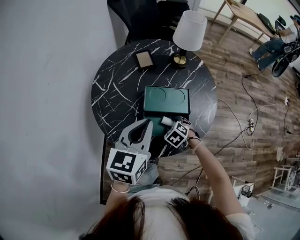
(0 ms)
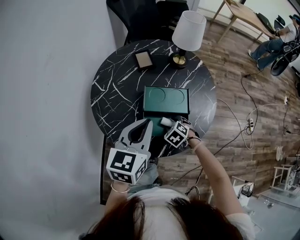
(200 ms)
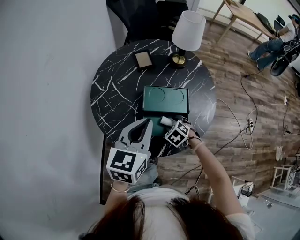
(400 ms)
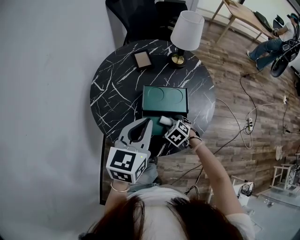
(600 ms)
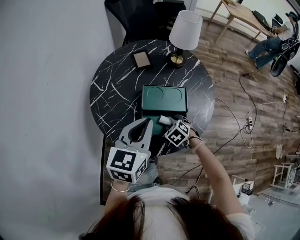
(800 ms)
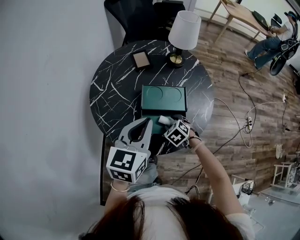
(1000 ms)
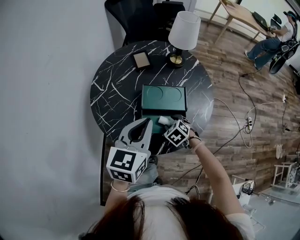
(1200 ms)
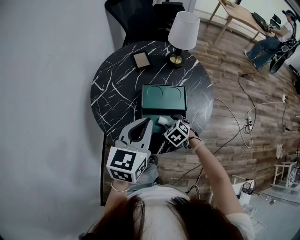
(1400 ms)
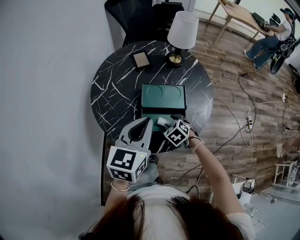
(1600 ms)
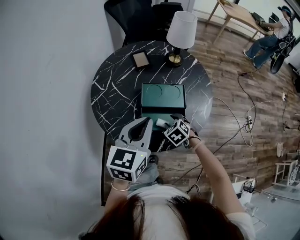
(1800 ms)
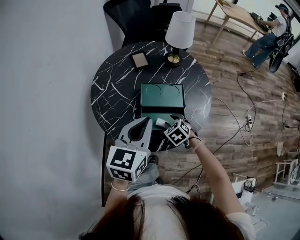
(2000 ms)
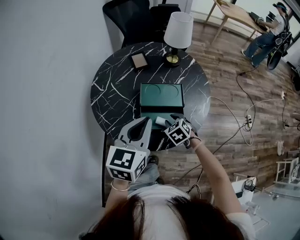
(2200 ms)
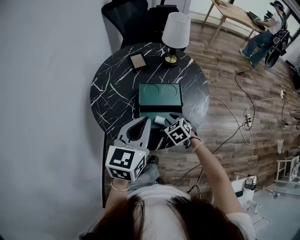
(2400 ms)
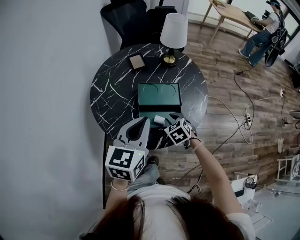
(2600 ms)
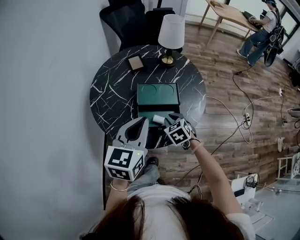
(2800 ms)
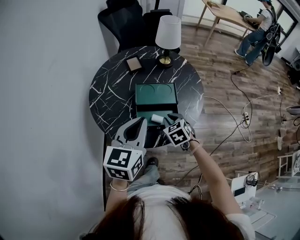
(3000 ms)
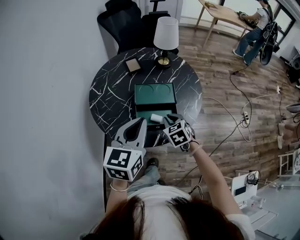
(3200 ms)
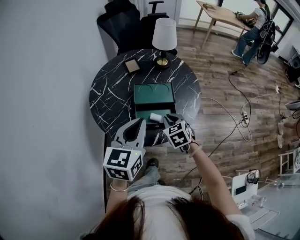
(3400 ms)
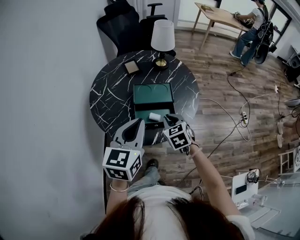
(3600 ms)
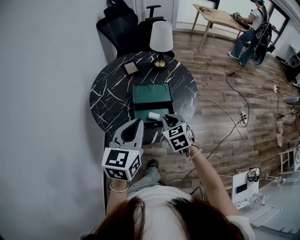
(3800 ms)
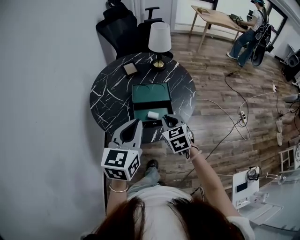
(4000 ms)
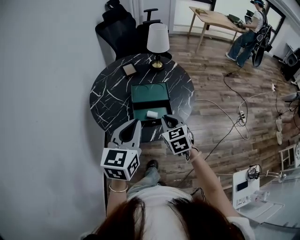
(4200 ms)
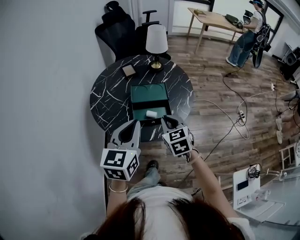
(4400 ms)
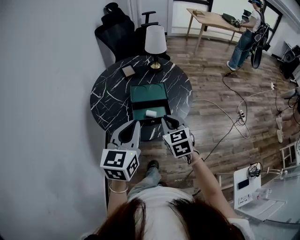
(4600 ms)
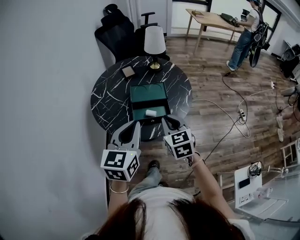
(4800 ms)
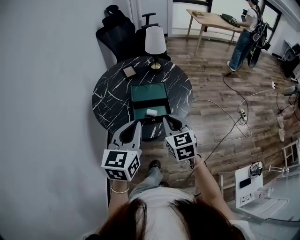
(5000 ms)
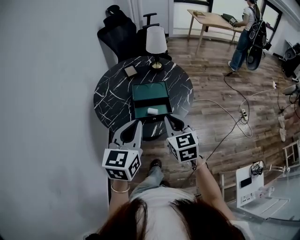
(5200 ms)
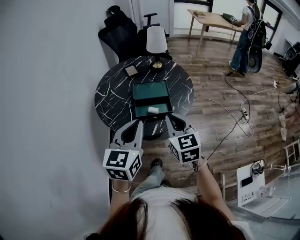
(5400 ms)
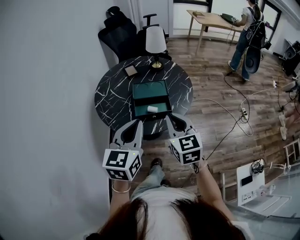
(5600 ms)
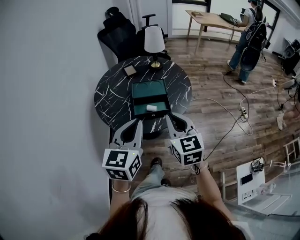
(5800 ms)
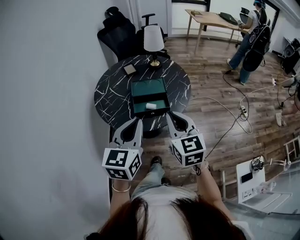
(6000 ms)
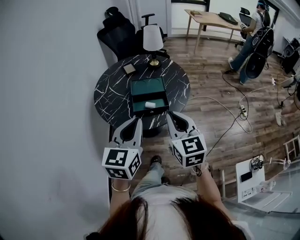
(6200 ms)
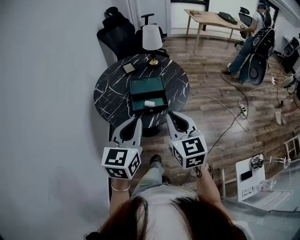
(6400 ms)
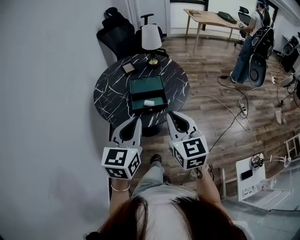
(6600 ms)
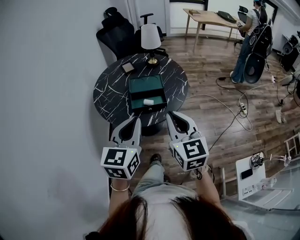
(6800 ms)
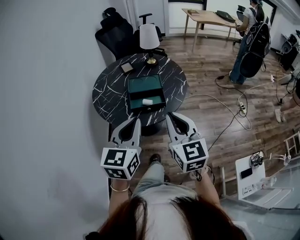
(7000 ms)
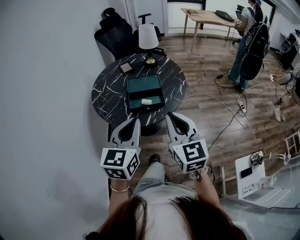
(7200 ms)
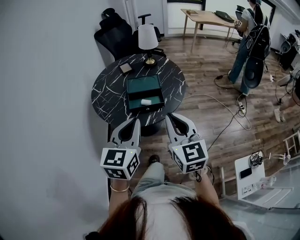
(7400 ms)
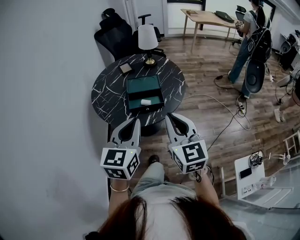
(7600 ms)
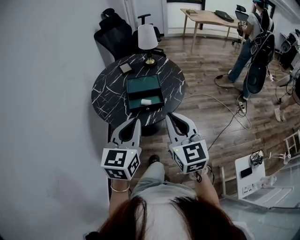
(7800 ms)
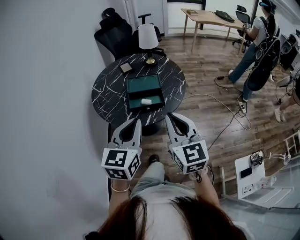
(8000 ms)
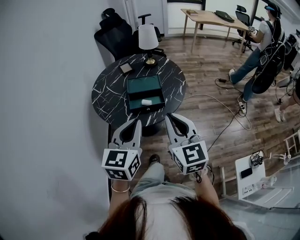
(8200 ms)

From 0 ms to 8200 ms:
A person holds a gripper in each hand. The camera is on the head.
From 0 ms to 1600 ms: The grippers stay close to where they were, moving slightly.
From 1600 ms to 3200 ms: The left gripper shifts approximately 5 cm backward; the right gripper shifts some 10 cm upward, rotates approximately 20 degrees, and closes.
From 3200 ms to 5000 ms: The right gripper travels upward and backward by roughly 20 cm, and rotates approximately 30 degrees; the left gripper moves backward, about 10 cm.
From 5000 ms to 6600 ms: The left gripper shifts some 10 cm backward, while the right gripper shifts some 15 cm backward and upward.
From 6600 ms to 8200 ms: The grippers make only small movements.

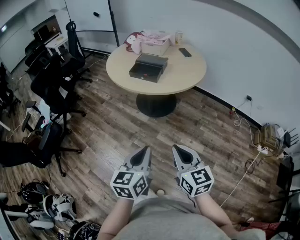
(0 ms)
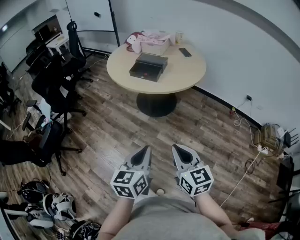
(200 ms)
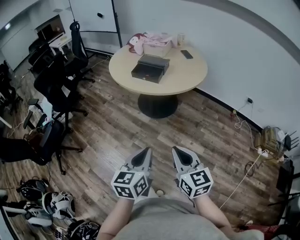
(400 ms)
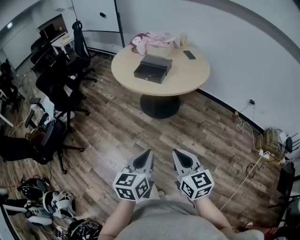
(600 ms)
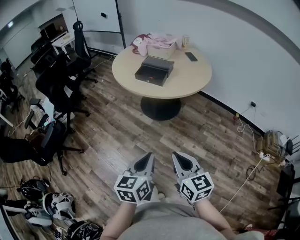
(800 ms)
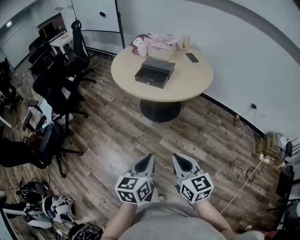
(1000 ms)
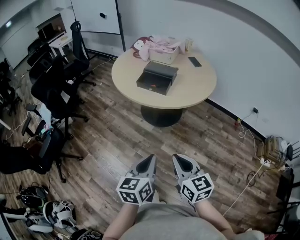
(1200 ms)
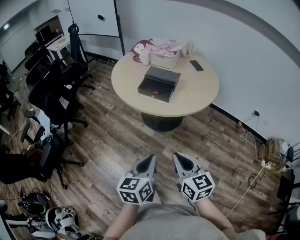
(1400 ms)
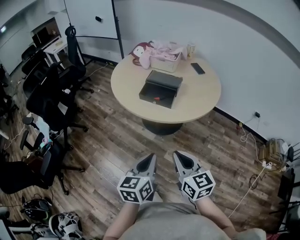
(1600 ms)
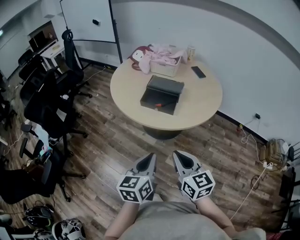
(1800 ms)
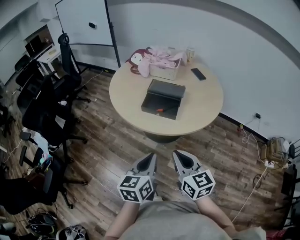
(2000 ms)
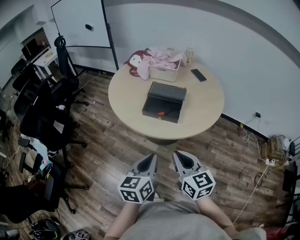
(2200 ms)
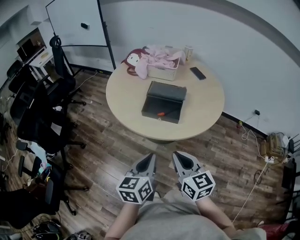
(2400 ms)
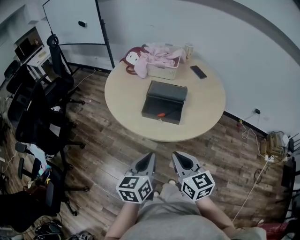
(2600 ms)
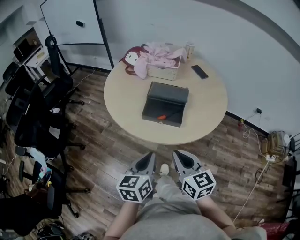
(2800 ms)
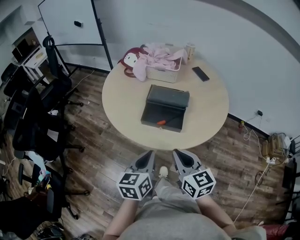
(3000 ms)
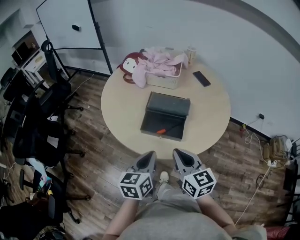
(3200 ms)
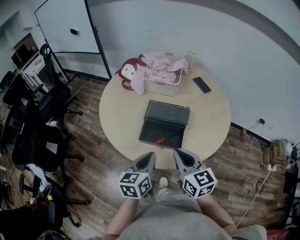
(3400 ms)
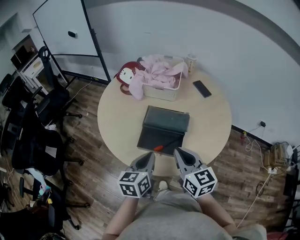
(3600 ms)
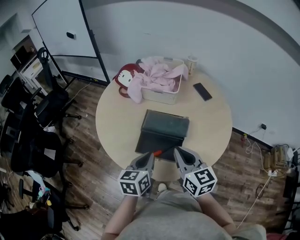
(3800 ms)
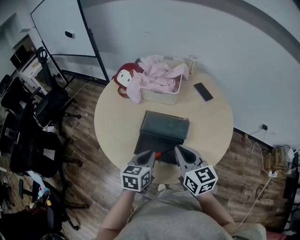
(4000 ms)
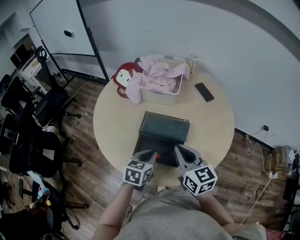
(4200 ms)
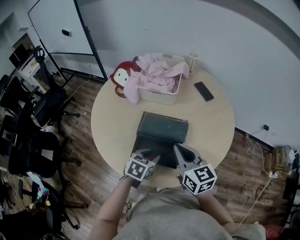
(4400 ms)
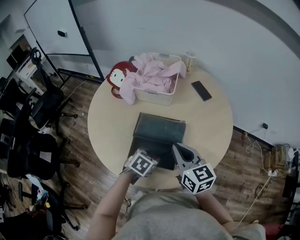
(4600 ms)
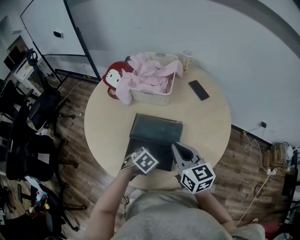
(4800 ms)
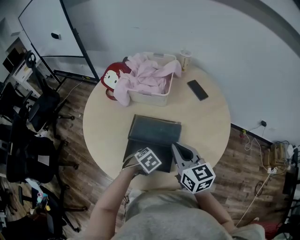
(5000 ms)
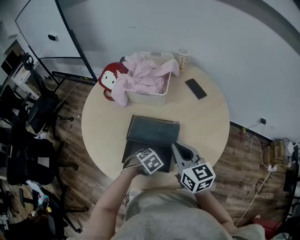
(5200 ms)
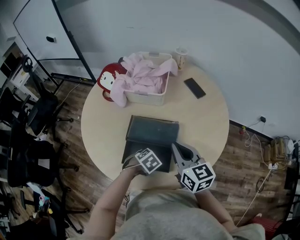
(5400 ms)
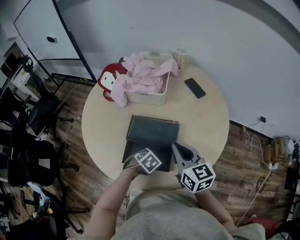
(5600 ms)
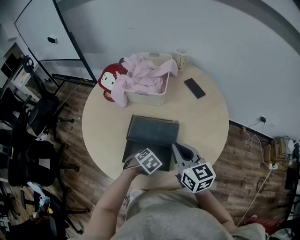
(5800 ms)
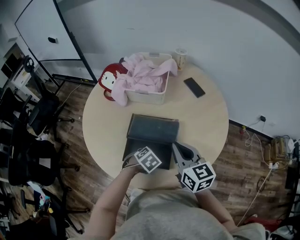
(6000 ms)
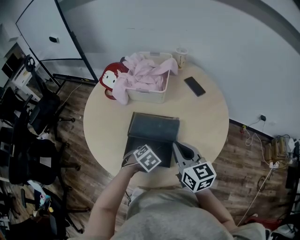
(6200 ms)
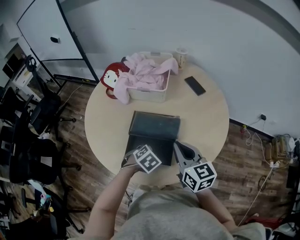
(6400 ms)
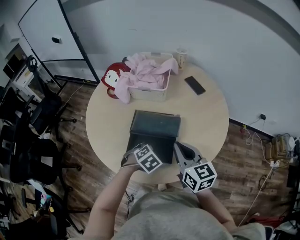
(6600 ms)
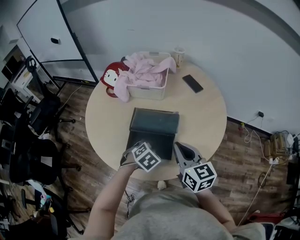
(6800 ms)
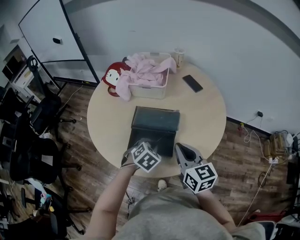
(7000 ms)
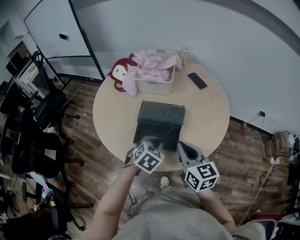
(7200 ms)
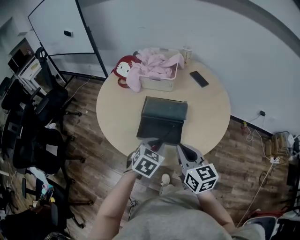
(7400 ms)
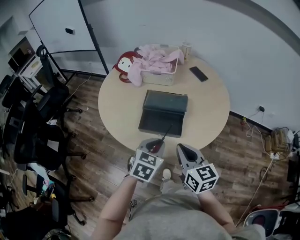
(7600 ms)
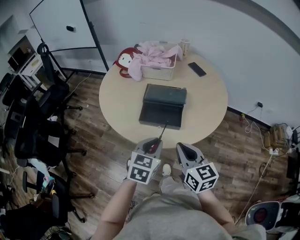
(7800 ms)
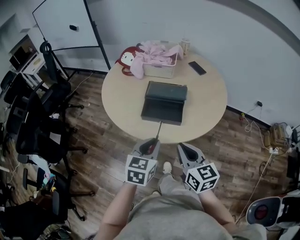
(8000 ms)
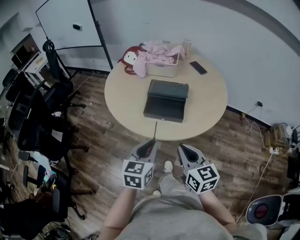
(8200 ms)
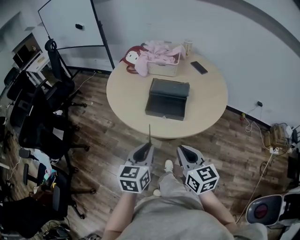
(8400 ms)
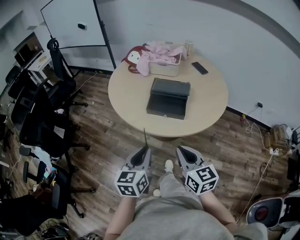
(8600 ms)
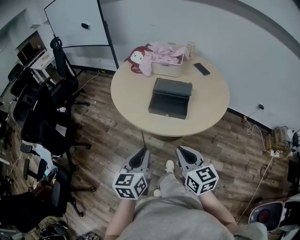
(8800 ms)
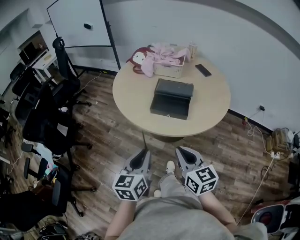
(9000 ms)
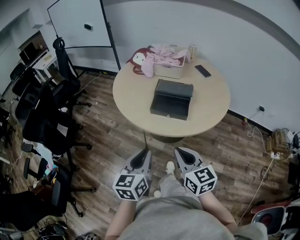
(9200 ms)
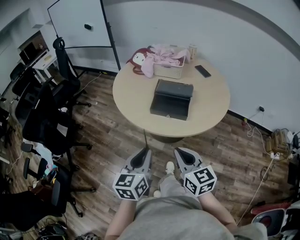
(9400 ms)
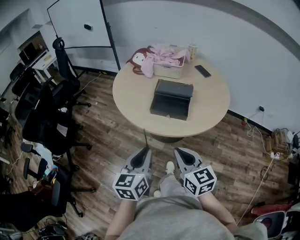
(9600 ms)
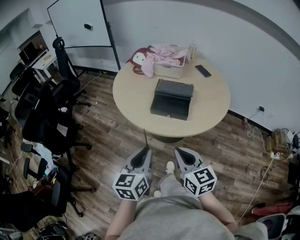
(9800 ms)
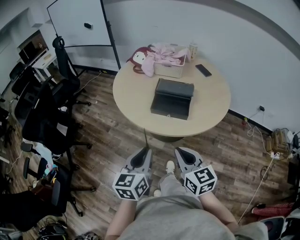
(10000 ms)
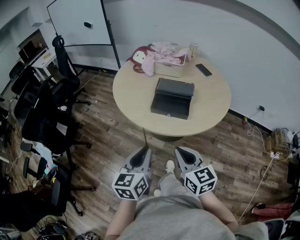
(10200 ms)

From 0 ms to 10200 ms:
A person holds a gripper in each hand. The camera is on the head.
From 0 ms to 1400 ms: The two grippers go approximately 15 cm forward.
From 1400 ms to 3000 ms: Both grippers move forward, about 30 cm.
From 3000 ms to 4400 ms: The left gripper goes some 25 cm forward and downward, swivels some 40 degrees, and opens up, while the right gripper is displaced forward by approximately 25 cm.
From 4400 ms to 5800 ms: The left gripper goes roughly 10 cm downward, and changes its angle by roughly 40 degrees.
From 5800 ms to 7200 ms: The left gripper is displaced upward and backward by approximately 15 cm, and swivels roughly 20 degrees; the right gripper moves backward, approximately 10 cm.
From 7200 ms to 8800 ms: The right gripper is displaced backward by approximately 25 cm. The left gripper goes some 30 cm backward and to the left, and angles its fingers upward, by approximately 30 degrees.
From 8800 ms to 10200 ms: The grippers stay close to where they were, moving slightly.

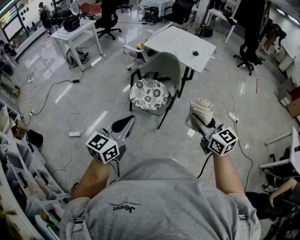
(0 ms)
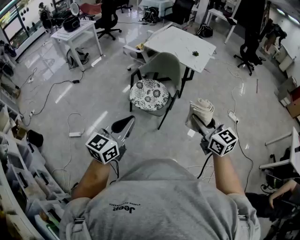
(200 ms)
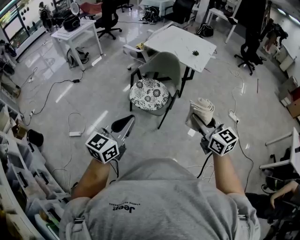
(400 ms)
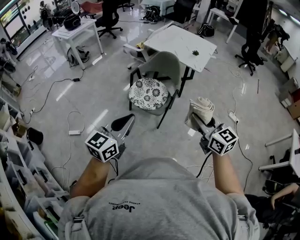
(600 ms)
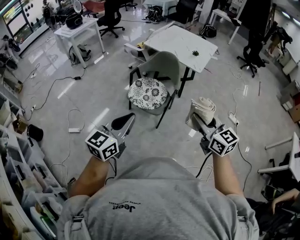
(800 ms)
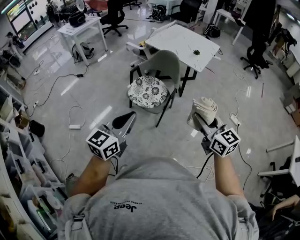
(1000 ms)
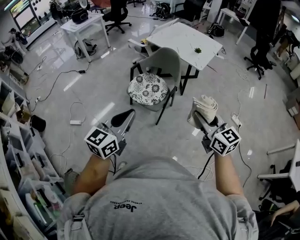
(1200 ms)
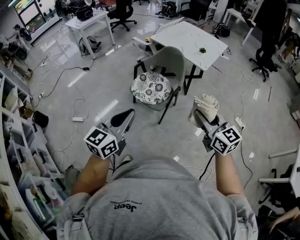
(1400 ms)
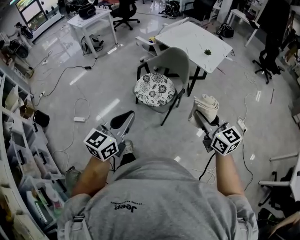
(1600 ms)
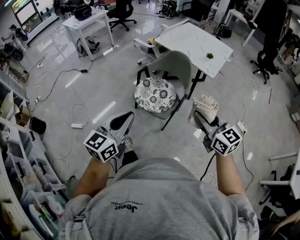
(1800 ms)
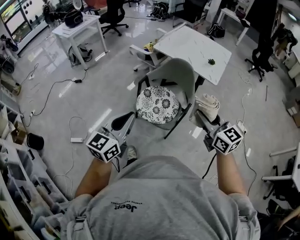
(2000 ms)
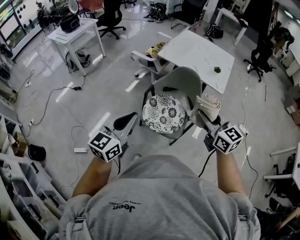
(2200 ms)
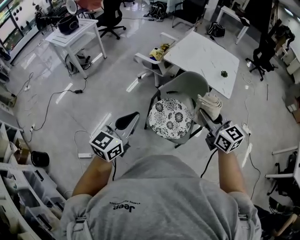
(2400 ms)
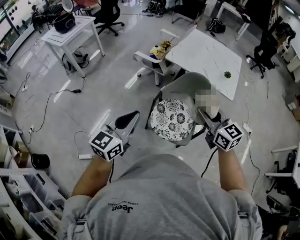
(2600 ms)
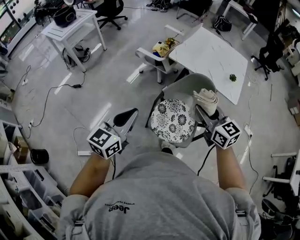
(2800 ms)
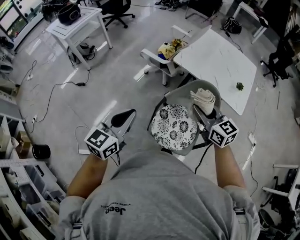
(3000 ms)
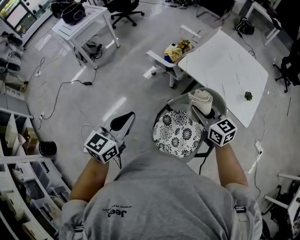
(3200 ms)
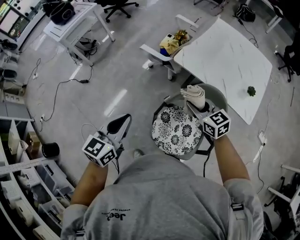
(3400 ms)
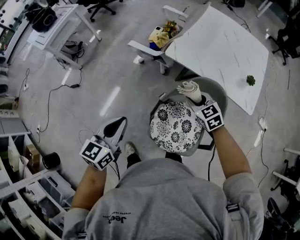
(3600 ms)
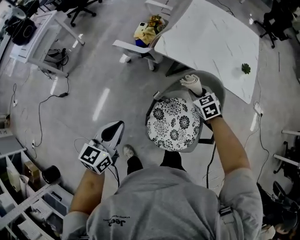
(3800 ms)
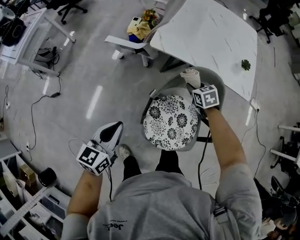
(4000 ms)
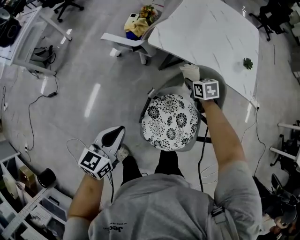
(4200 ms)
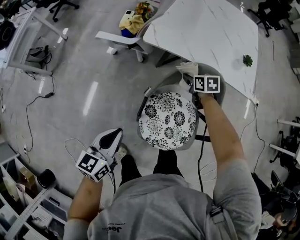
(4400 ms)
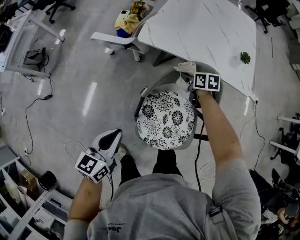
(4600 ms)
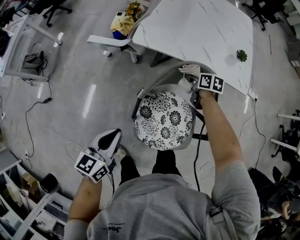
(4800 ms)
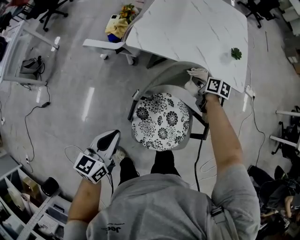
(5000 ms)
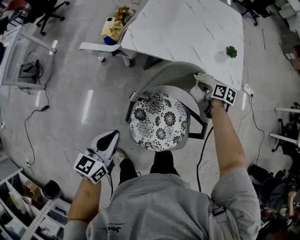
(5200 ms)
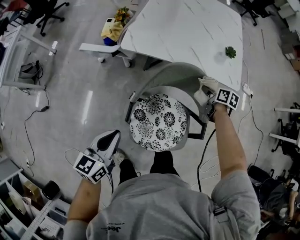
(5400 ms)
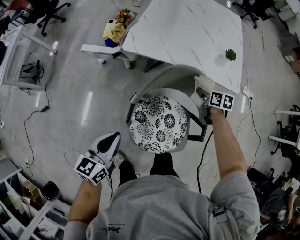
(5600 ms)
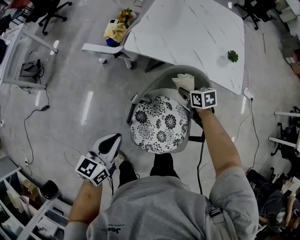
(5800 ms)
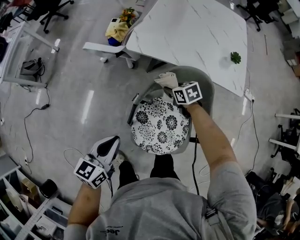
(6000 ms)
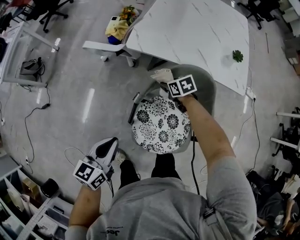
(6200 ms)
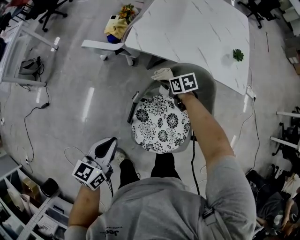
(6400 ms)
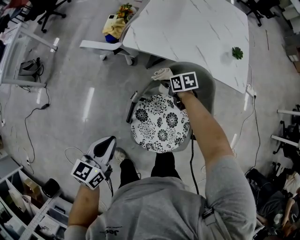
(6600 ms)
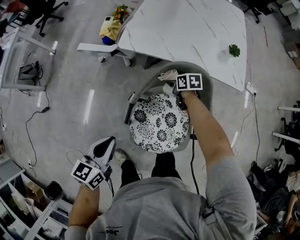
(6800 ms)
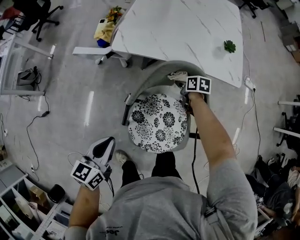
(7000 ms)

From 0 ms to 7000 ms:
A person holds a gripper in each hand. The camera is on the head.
From 0 ms to 1400 ms: Both grippers travel together to the right, some 10 cm.
From 1400 ms to 2800 ms: Both grippers are carried forward and to the left, some 50 cm.
From 2800 ms to 4200 ms: The left gripper is displaced downward and forward by some 30 cm, and turns by roughly 20 degrees. Meanwhile the right gripper heads downward and forward, covering roughly 50 cm, and tips its fingers downward by roughly 40 degrees.
From 4200 ms to 5600 ms: The right gripper travels to the right by about 15 cm, and swivels about 30 degrees; the left gripper goes some 5 cm to the right.
From 5600 ms to 7000 ms: The right gripper moves downward, approximately 10 cm, and moves some 20 cm to the left and comes back.
